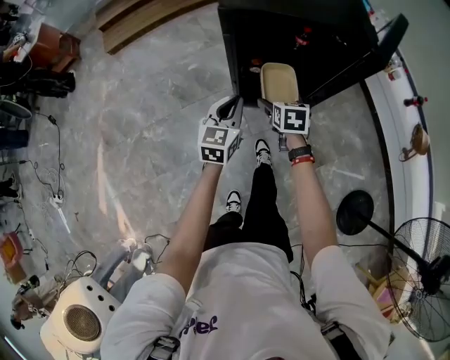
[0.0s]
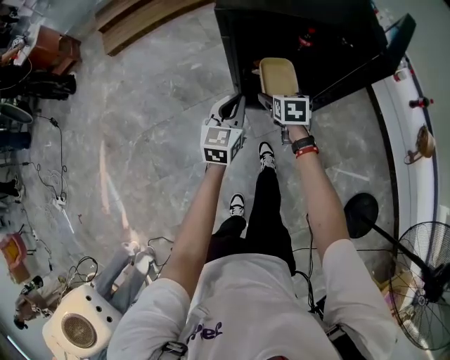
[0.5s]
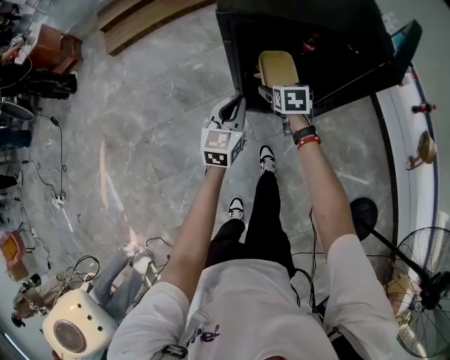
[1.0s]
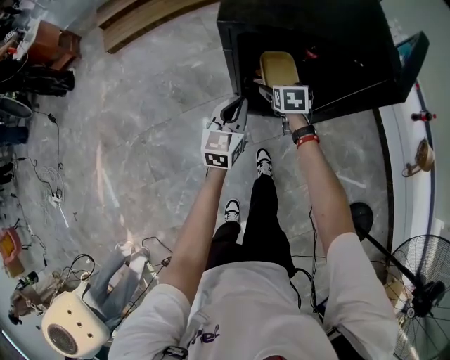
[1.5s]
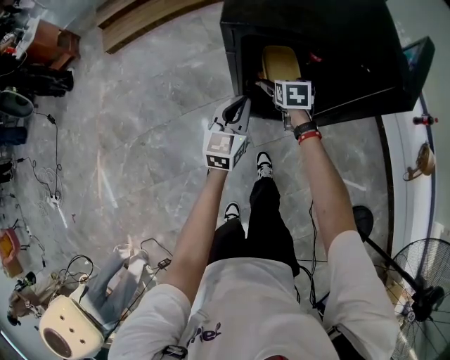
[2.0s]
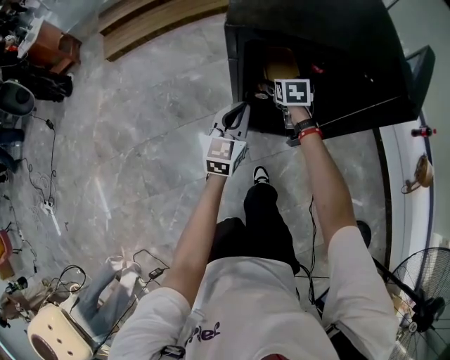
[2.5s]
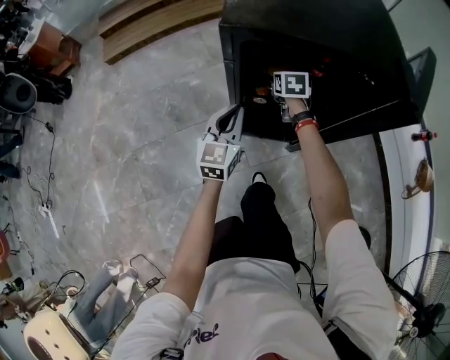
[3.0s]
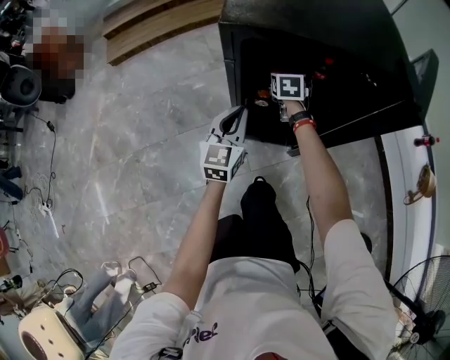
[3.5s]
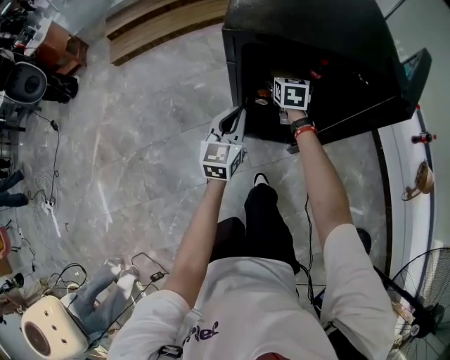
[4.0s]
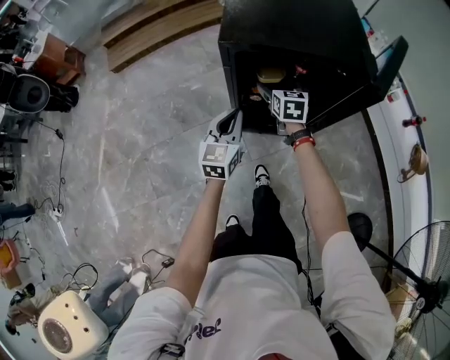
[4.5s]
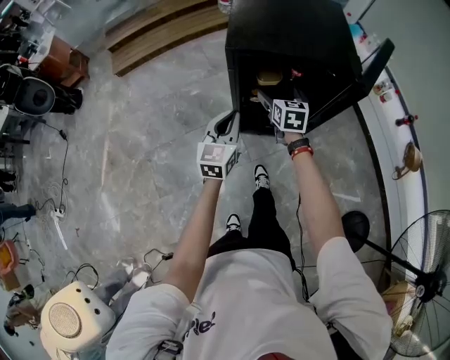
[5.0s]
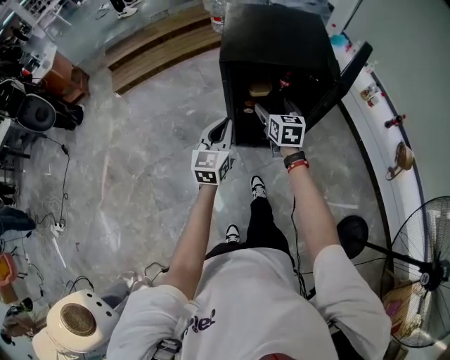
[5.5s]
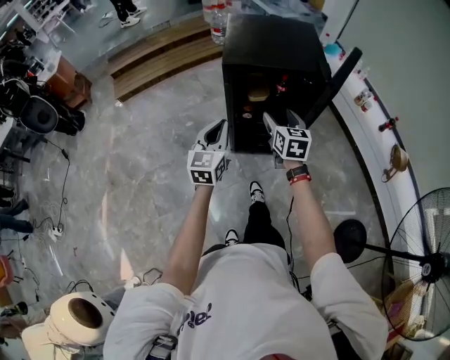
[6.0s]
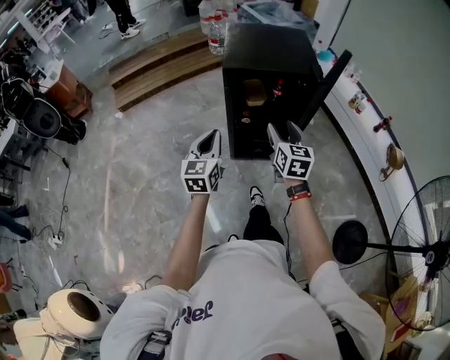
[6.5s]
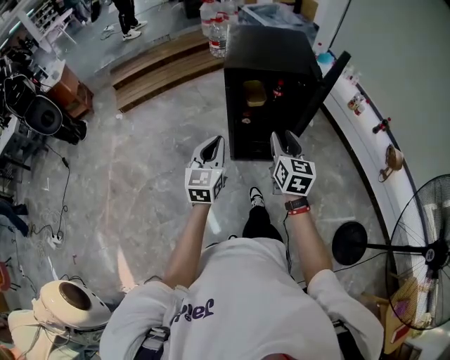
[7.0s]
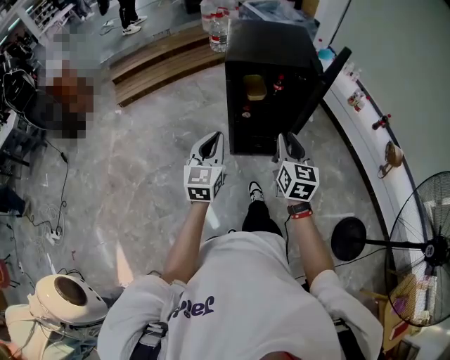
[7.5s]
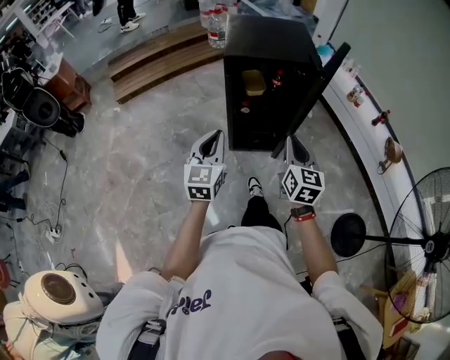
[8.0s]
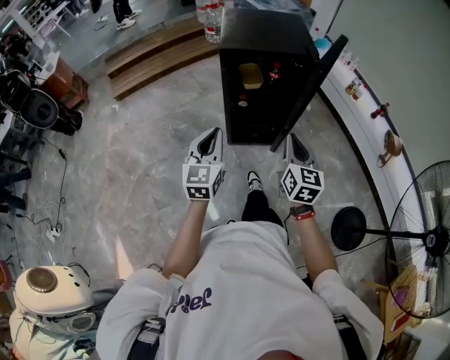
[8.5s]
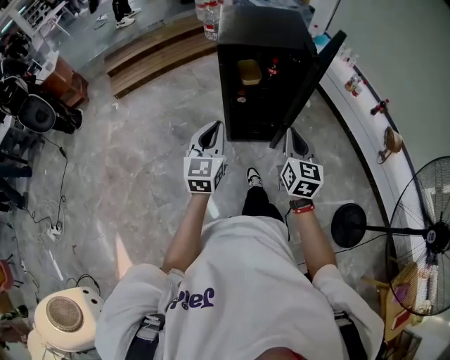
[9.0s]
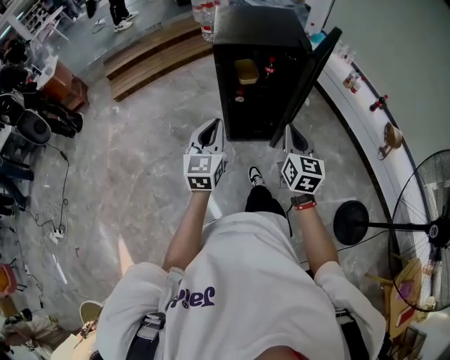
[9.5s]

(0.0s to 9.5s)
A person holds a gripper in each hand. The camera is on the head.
0.0s - 2.0s: The left gripper travels forward by some 10 cm. The right gripper moves forward, about 15 cm.
2.0s - 4.0s: The right gripper shifts some 5 cm forward.
4.0s - 5.5s: The left gripper travels upward and backward by approximately 25 cm. Meanwhile the right gripper is displaced backward and upward by approximately 30 cm.
5.5s - 7.5s: The grippers both shift backward and upward by roughly 25 cm. The right gripper closes its fingers.
7.5s - 9.5s: The right gripper moves approximately 5 cm.

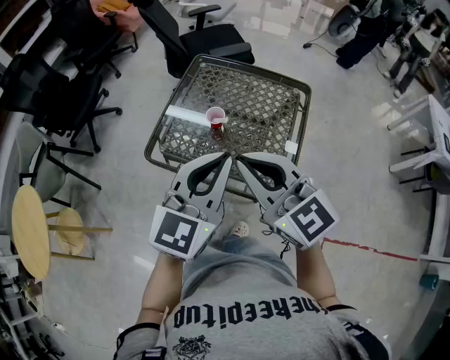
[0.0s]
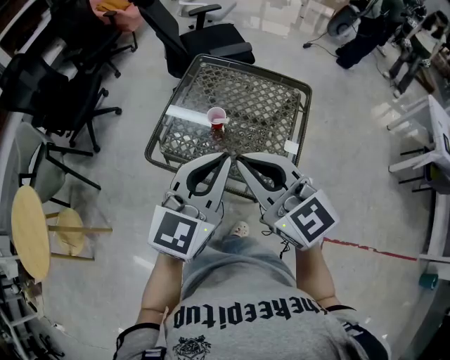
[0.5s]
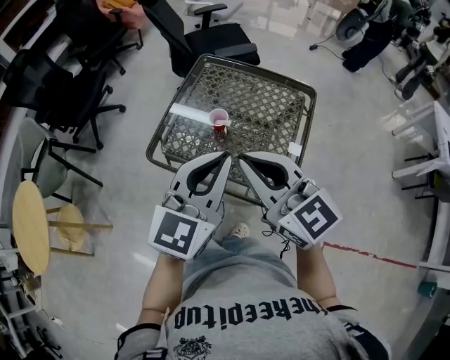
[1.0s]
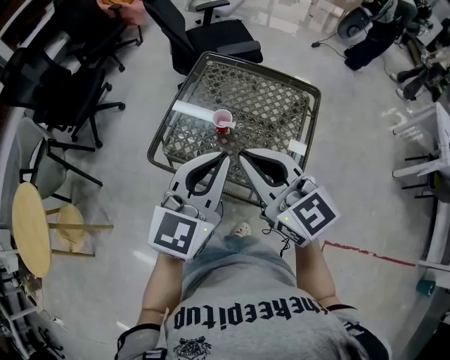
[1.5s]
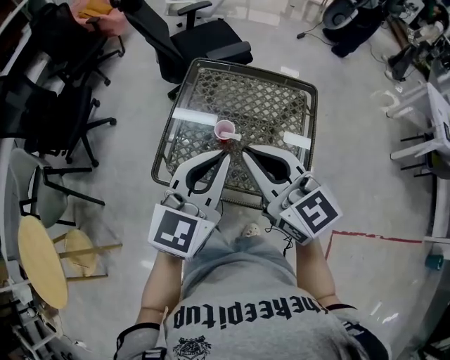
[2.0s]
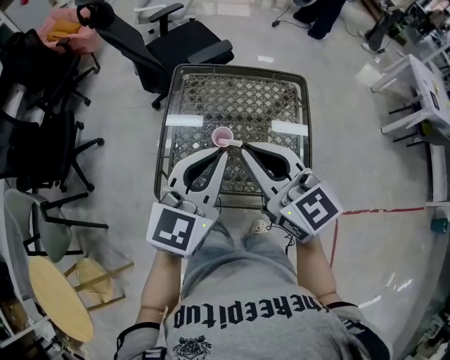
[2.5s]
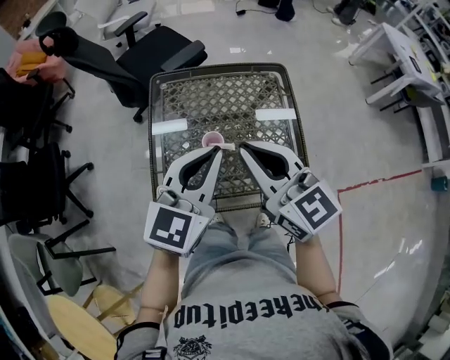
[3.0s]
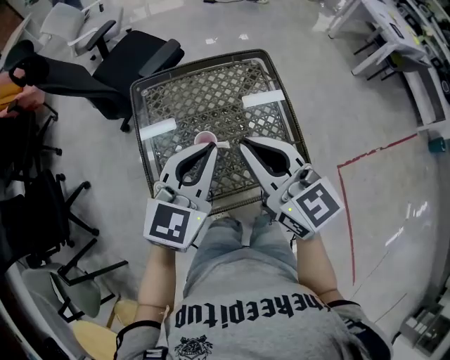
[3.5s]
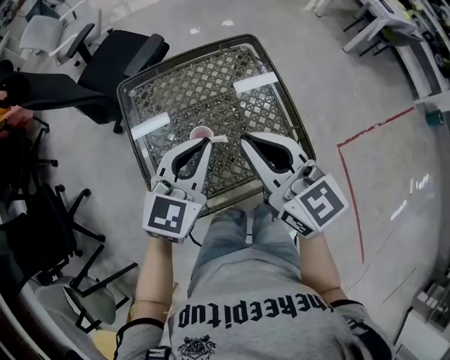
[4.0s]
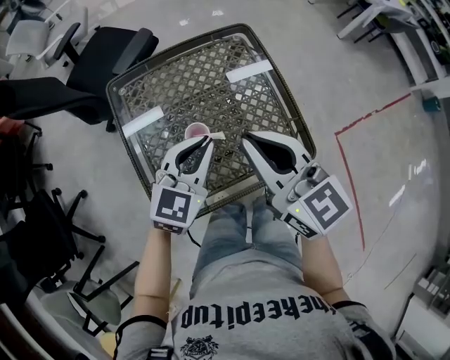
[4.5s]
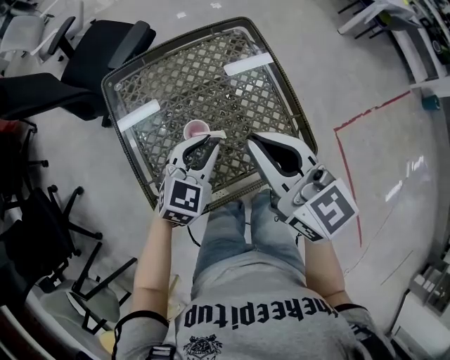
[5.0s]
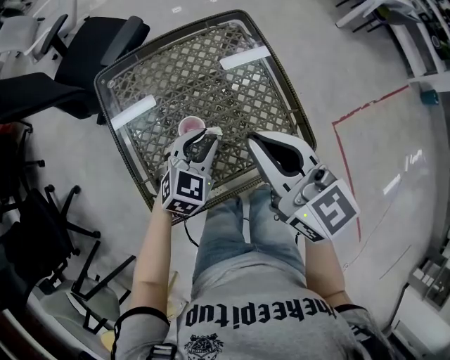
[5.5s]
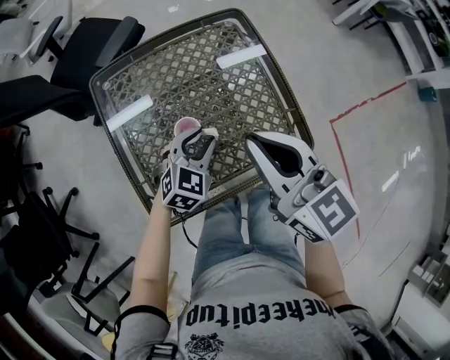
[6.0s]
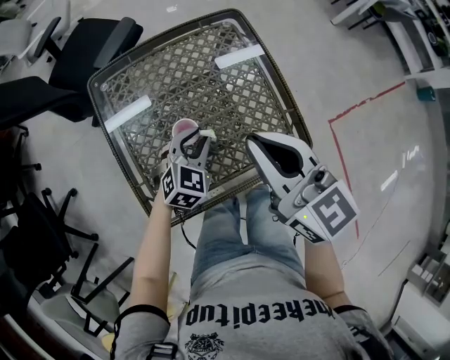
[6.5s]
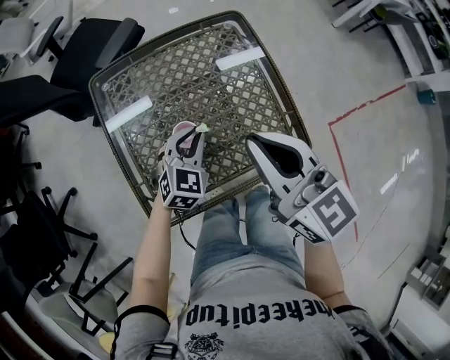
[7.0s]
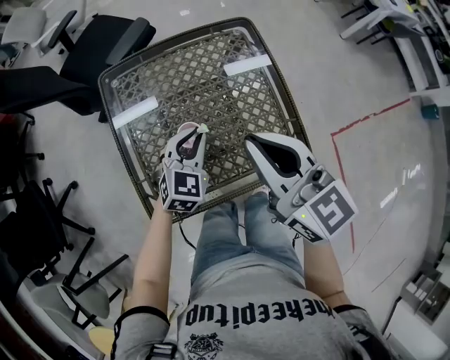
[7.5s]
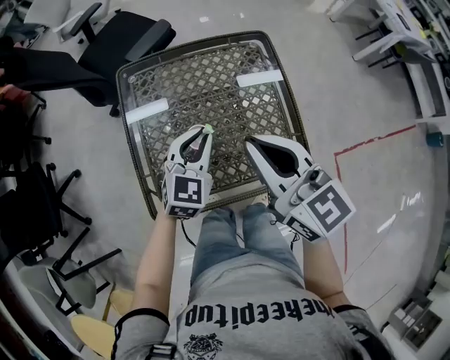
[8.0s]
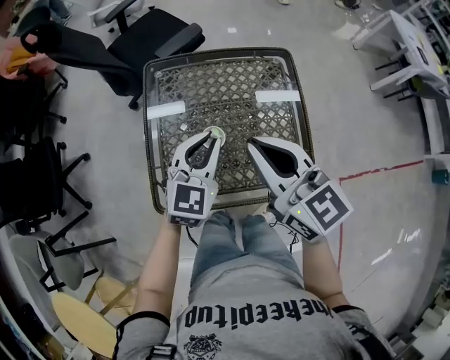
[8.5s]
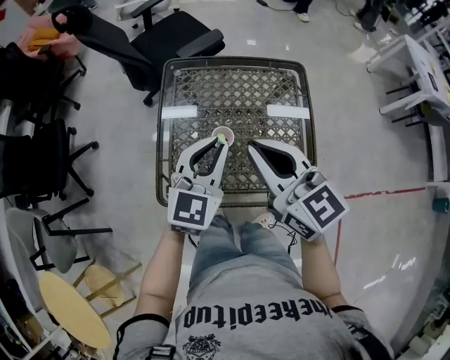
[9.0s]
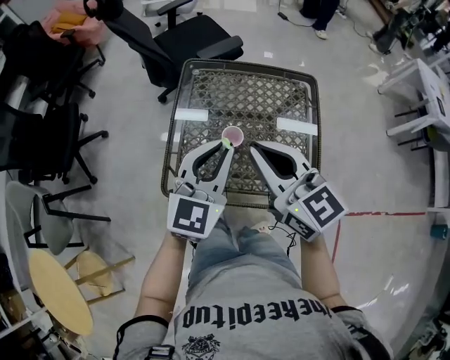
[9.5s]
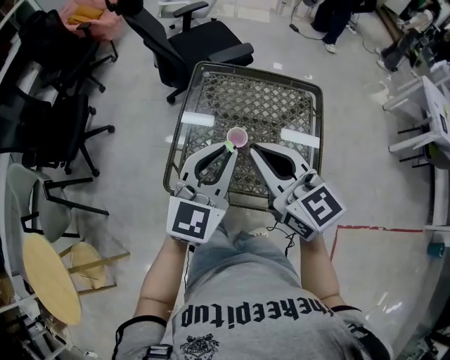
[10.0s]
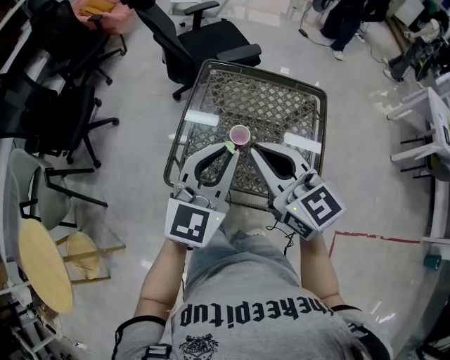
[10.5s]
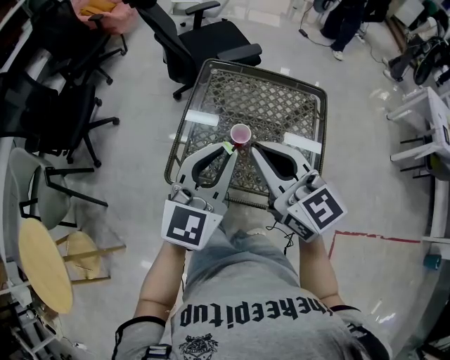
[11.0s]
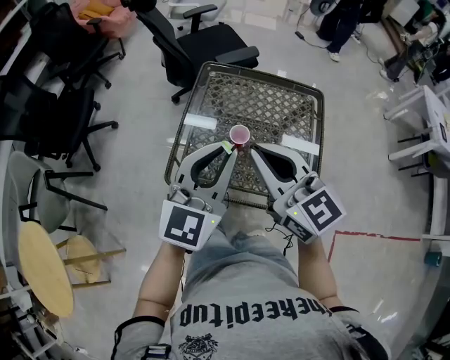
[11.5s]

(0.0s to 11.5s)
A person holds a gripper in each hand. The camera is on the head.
0.0s - 2.0s: Both grippers move forward, some 10 cm.
2.0s - 4.0s: The left gripper shifts by roughly 15 cm, and swivels approximately 30 degrees; the right gripper shifts by approximately 10 cm, and turns by approximately 40 degrees.
4.0s - 6.0s: The left gripper travels downward by roughly 20 cm, changes its angle by about 20 degrees, and opens up.
6.0s - 7.5s: The left gripper closes up.
7.5s - 9.5s: The right gripper heads to the left, covering about 5 cm, and changes its angle by about 30 degrees; the left gripper moves upward and backward, approximately 20 cm, and rotates roughly 30 degrees.
9.5s - 11.5s: The right gripper shifts by some 5 cm. Meanwhile the left gripper moves upward and backward, some 10 cm.

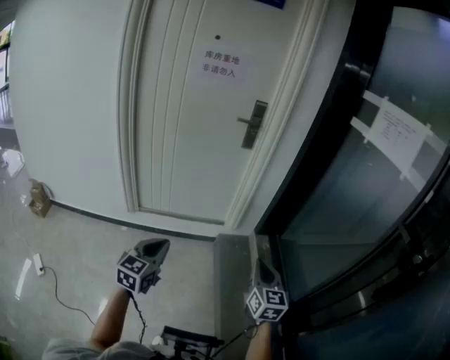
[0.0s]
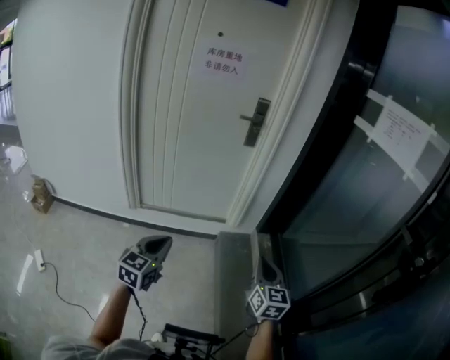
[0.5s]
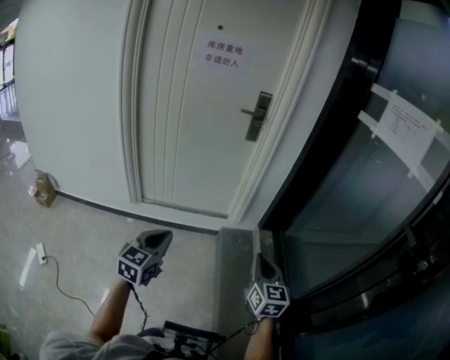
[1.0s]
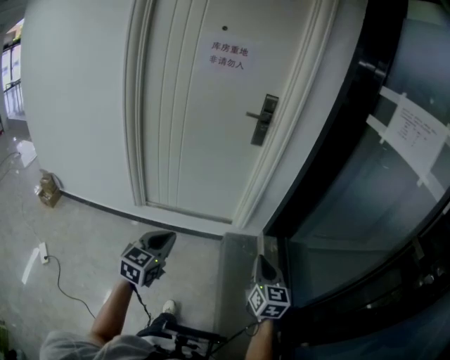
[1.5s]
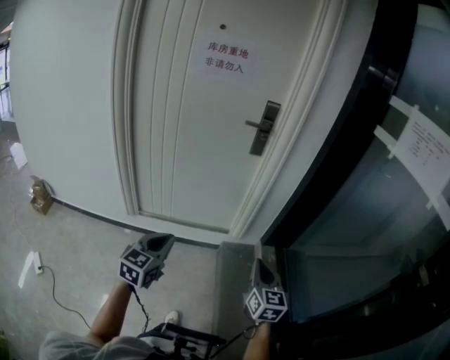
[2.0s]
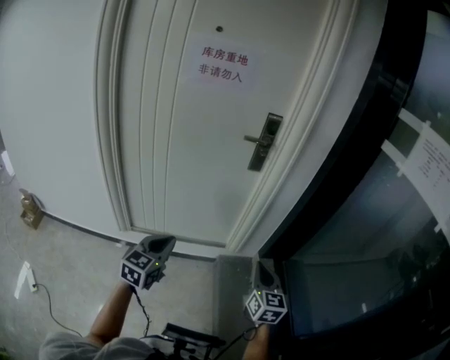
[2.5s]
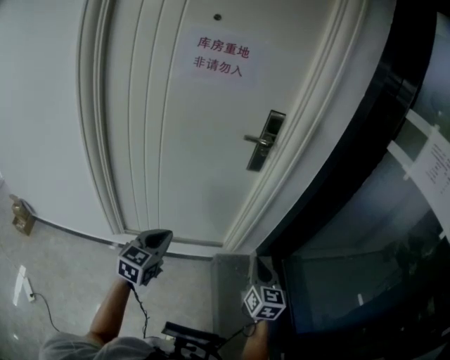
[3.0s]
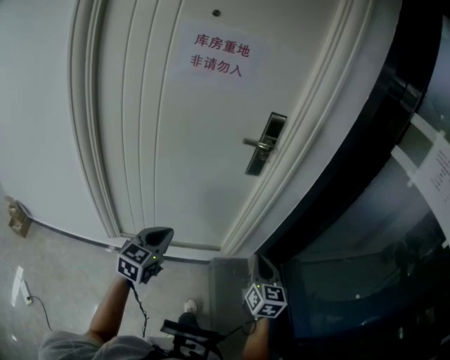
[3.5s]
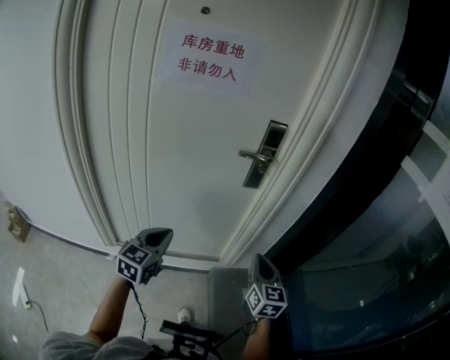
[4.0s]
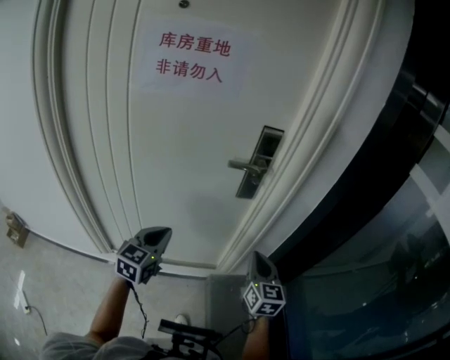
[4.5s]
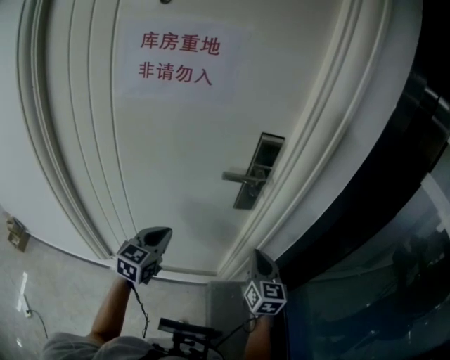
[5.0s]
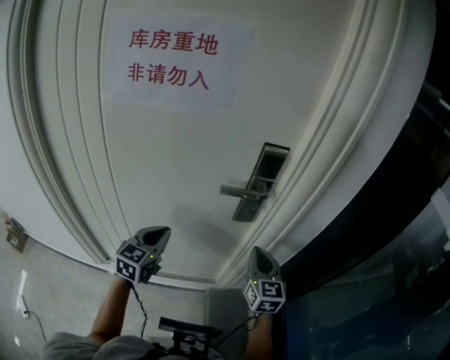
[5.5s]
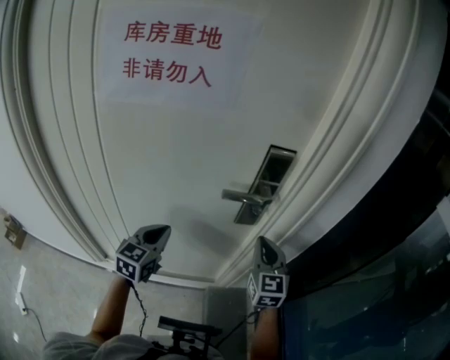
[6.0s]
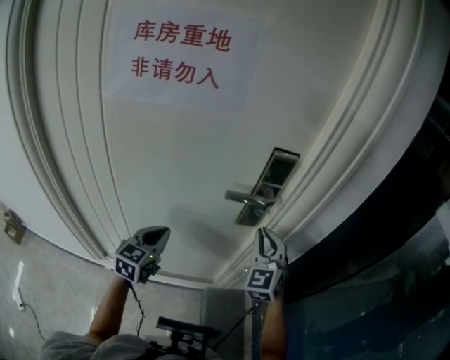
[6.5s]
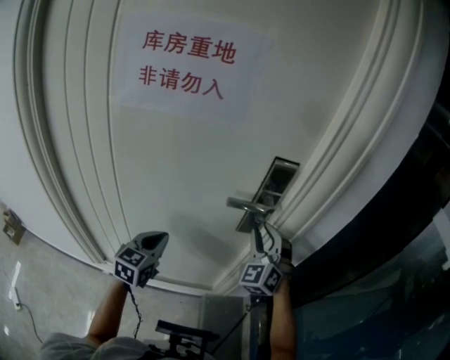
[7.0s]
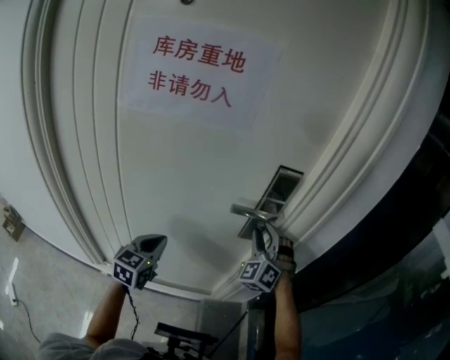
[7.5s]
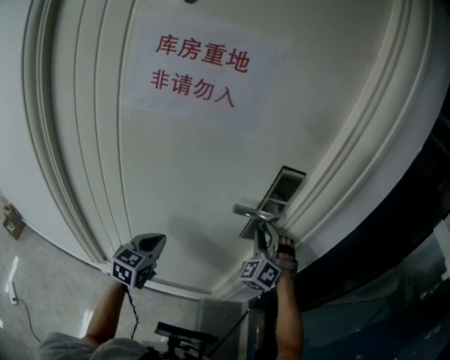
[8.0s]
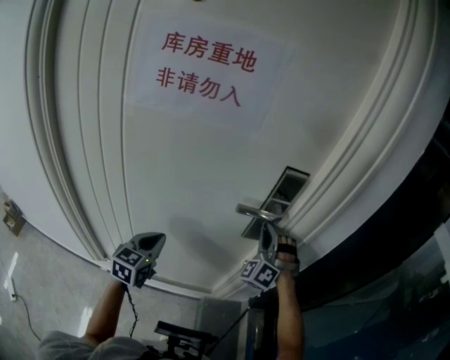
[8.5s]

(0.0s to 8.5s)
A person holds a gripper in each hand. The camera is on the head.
0.0s - 2.0s: Both grippers move forward, about 15 cm.
2.0s - 4.0s: The grippers both shift forward by roughly 30 cm.
4.0s - 6.5s: The two grippers go about 25 cm forward. The right gripper turns by about 40 degrees.
6.5s - 8.5s: The right gripper goes some 5 cm forward, rolls counterclockwise, seen from behind, by some 50 degrees, and opens, then closes once more.
